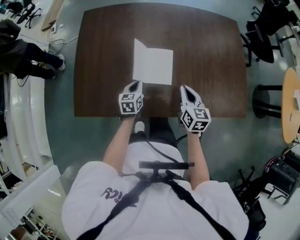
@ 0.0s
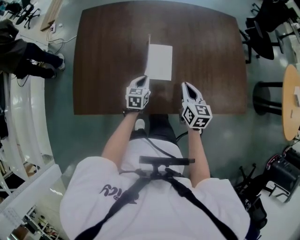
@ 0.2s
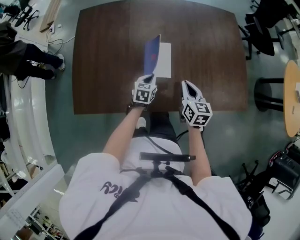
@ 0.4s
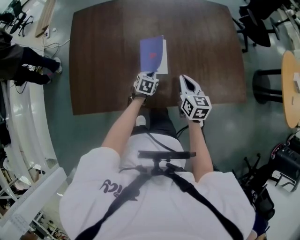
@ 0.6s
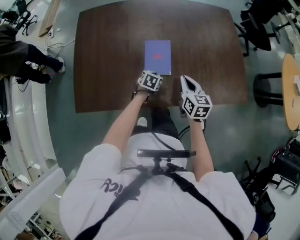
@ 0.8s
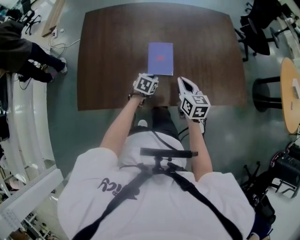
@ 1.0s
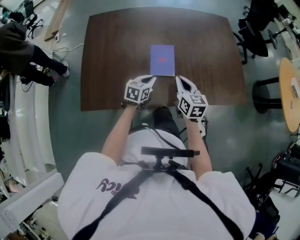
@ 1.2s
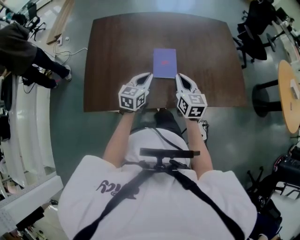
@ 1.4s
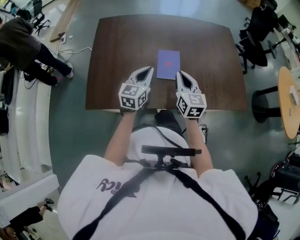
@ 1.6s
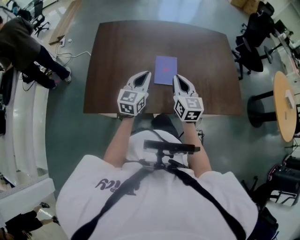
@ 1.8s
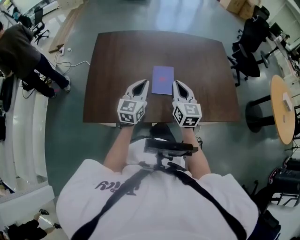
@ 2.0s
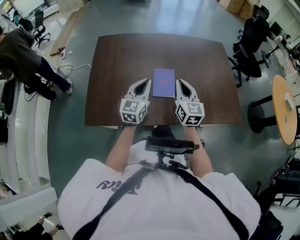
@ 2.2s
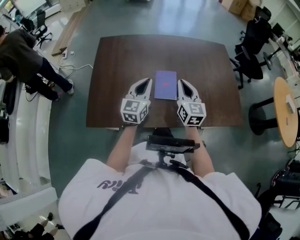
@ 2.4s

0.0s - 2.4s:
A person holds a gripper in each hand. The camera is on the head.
0.0s - 1.2s: The right gripper shifts some 5 cm backward. The left gripper goes approximately 10 cm to the right and upward, and changes its angle by roughly 20 degrees.
1.2s - 2.4s: The left gripper shifts some 20 cm upward, and tilts its fingers roughly 30 degrees upward, while the right gripper travels upward by about 10 cm, and rotates roughly 20 degrees.

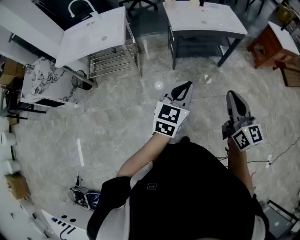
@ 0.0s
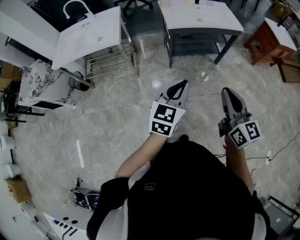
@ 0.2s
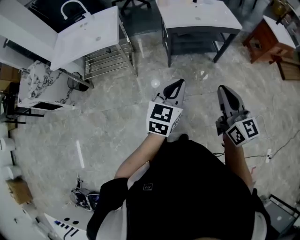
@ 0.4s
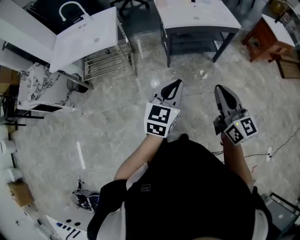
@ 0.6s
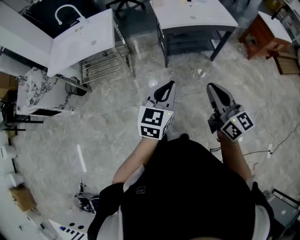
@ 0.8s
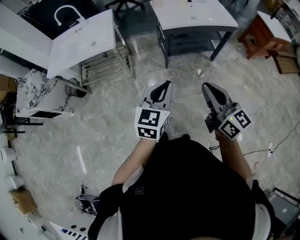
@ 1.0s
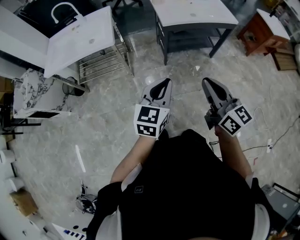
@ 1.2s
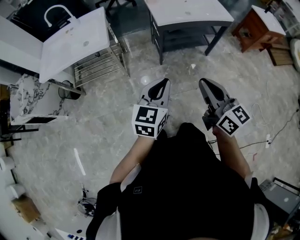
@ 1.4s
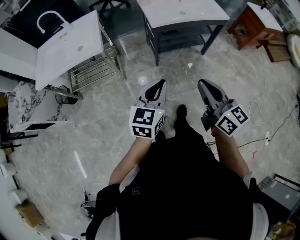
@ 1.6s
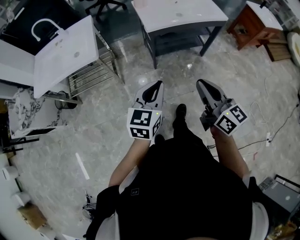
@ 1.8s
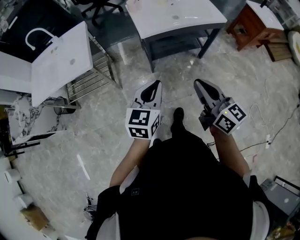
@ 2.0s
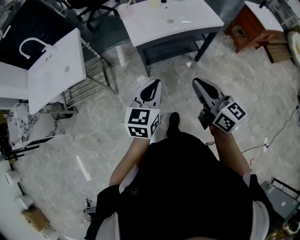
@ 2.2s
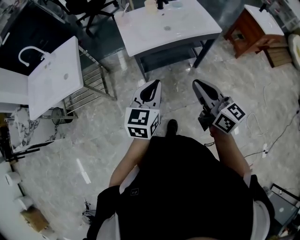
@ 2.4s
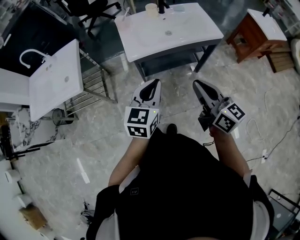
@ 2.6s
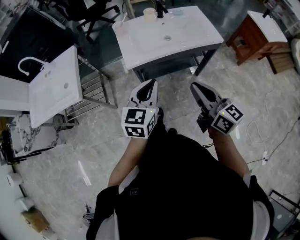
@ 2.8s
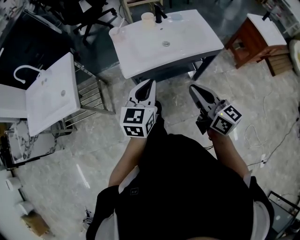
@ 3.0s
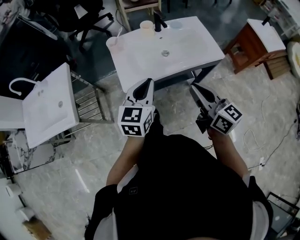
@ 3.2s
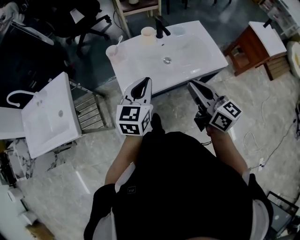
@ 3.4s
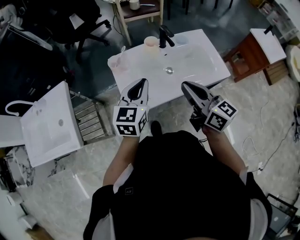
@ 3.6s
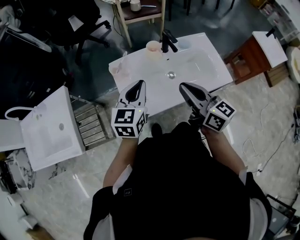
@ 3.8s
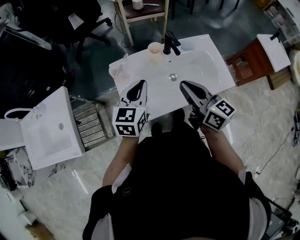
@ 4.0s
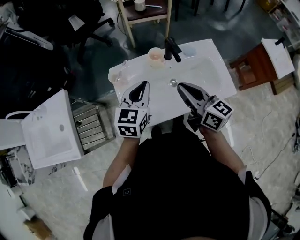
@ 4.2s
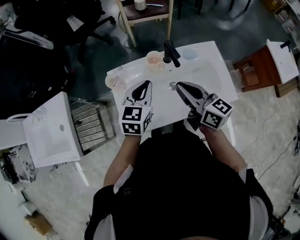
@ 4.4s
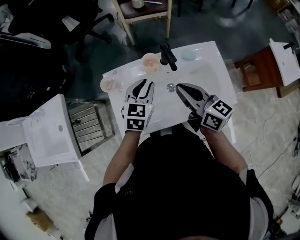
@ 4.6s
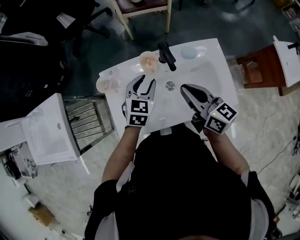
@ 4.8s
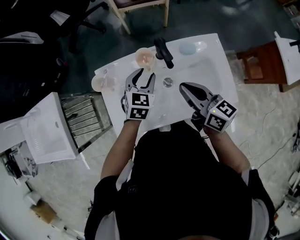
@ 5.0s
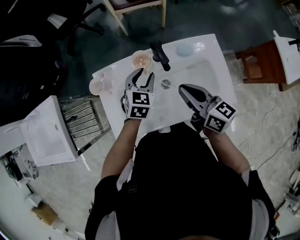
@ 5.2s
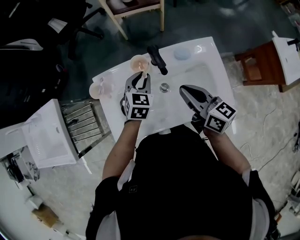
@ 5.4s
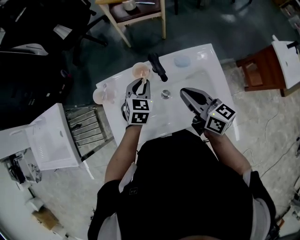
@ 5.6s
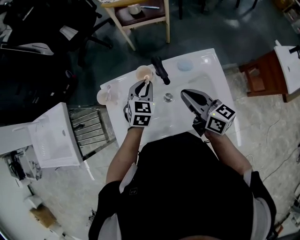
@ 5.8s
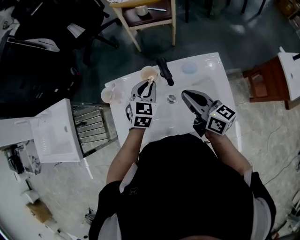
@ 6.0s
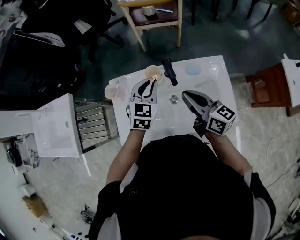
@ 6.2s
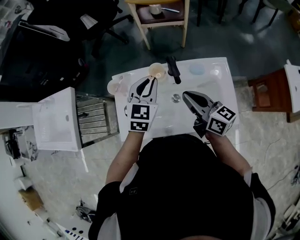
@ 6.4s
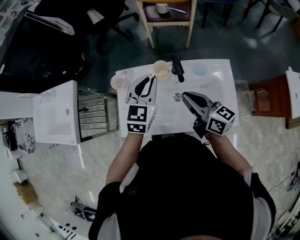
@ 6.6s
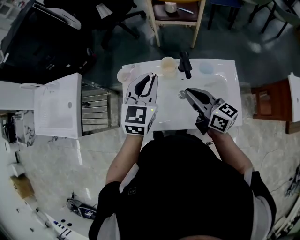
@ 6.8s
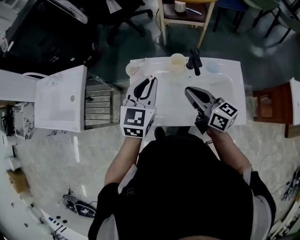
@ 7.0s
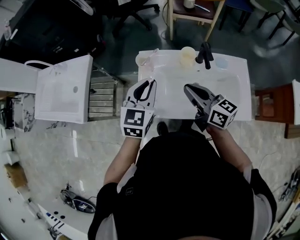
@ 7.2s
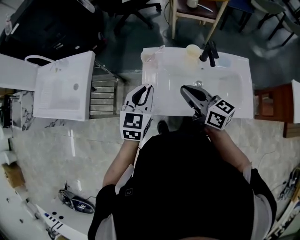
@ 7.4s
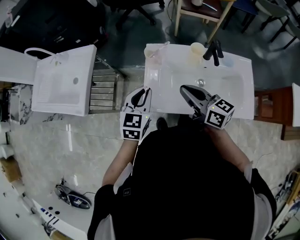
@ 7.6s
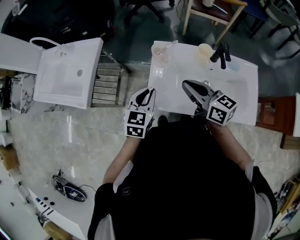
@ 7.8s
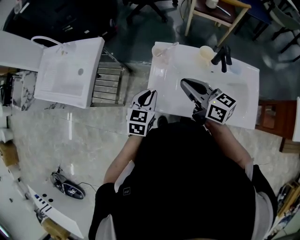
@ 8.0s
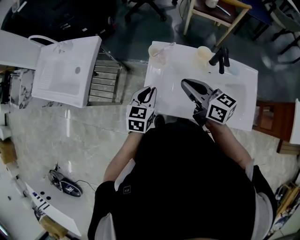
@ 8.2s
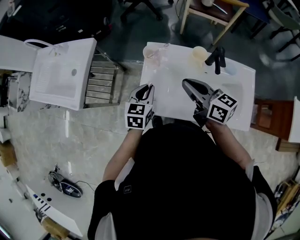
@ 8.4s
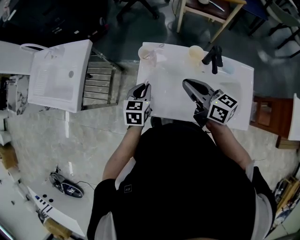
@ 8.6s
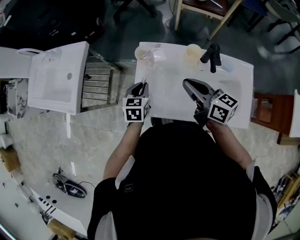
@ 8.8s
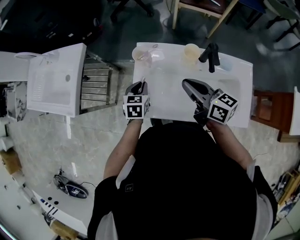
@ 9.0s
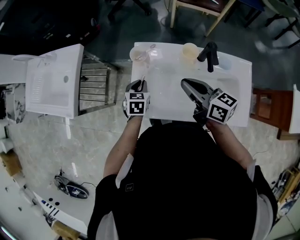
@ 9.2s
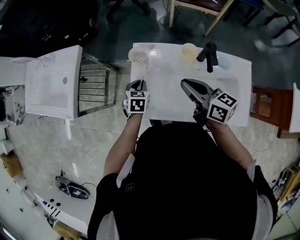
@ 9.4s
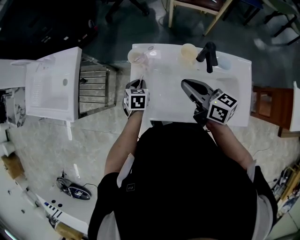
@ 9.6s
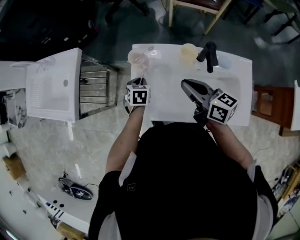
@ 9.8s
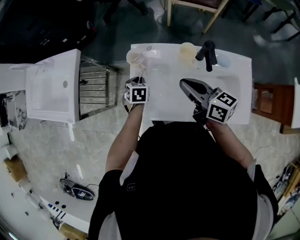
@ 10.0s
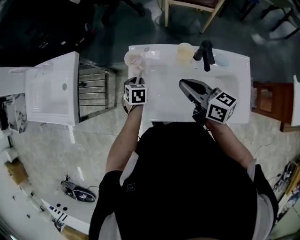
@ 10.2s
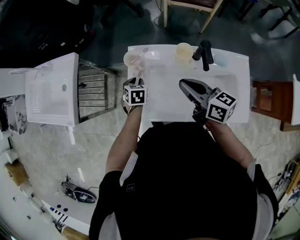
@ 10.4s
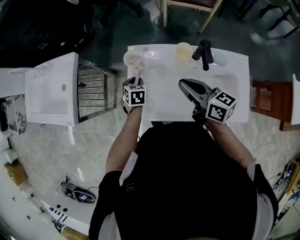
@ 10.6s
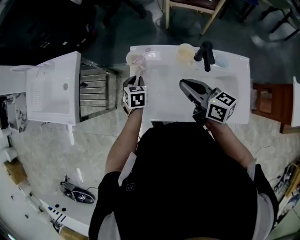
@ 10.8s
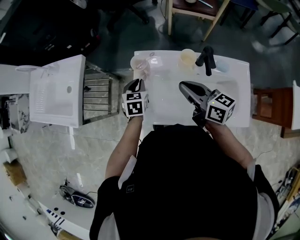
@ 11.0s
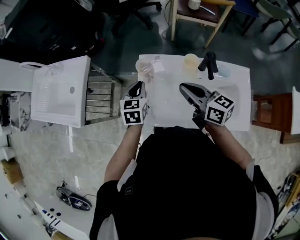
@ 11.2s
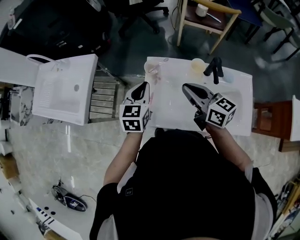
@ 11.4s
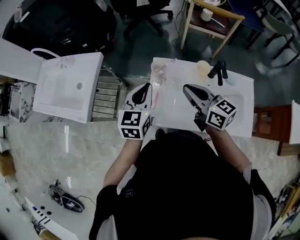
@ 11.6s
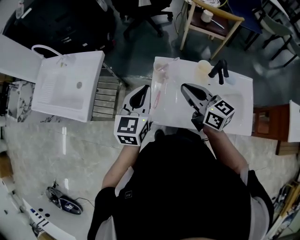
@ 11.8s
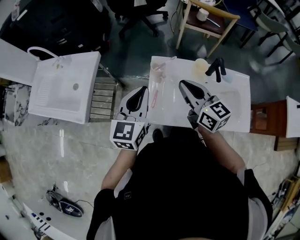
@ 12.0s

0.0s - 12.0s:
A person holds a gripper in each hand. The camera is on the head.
0.0s - 1.6s: Both grippers travel together to the left and forward, approximately 10 cm.
1.6s - 3.0s: The grippers both shift forward and to the right by about 40 cm.
3.0s - 4.4s: Both grippers move forward, approximately 40 cm.
4.4s - 6.0s: The left gripper heads to the right, forward and downward, covering some 15 cm, and opens, then closes once more; the right gripper goes about 10 cm to the right.
6.0s - 7.6s: The right gripper is displaced to the left by roughly 25 cm, while the left gripper heads to the left and backward, covering approximately 30 cm, and changes its angle by approximately 20 degrees.
7.6s - 9.0s: The left gripper shifts roughly 15 cm downward and forward, and swivels about 20 degrees; the right gripper goes about 10 cm to the right and forward.
9.0s - 10.4s: The left gripper heads downward, covering some 5 cm.
10.4s - 12.0s: The right gripper heads to the left and upward, covering approximately 15 cm, and changes its angle by some 20 degrees. Meanwhile the left gripper goes approximately 30 cm upward, and points its fingers about 50 degrees further upward.

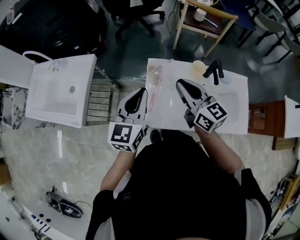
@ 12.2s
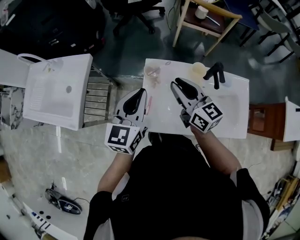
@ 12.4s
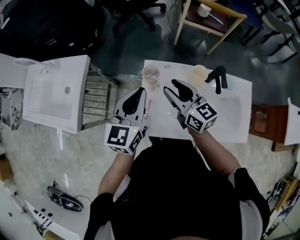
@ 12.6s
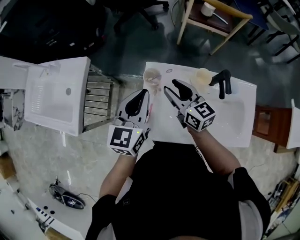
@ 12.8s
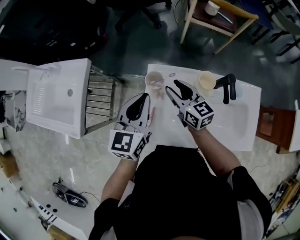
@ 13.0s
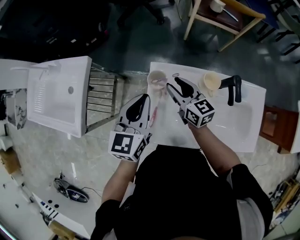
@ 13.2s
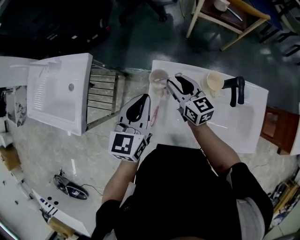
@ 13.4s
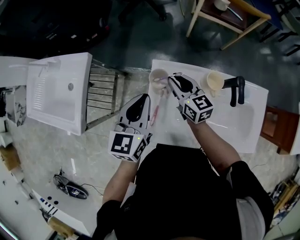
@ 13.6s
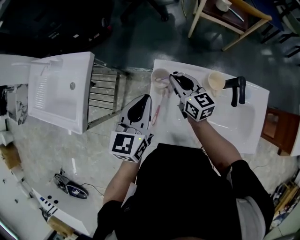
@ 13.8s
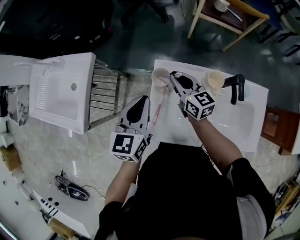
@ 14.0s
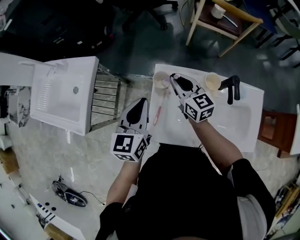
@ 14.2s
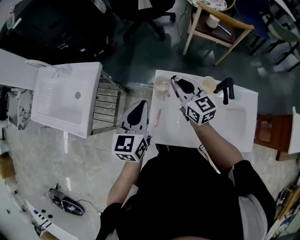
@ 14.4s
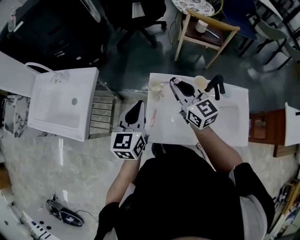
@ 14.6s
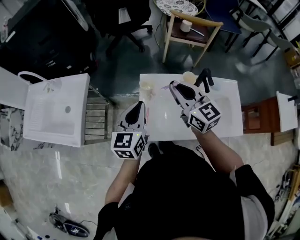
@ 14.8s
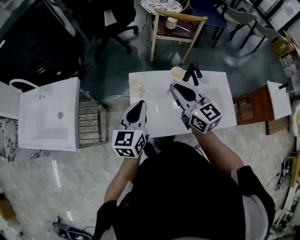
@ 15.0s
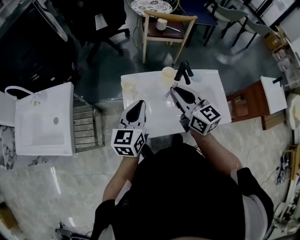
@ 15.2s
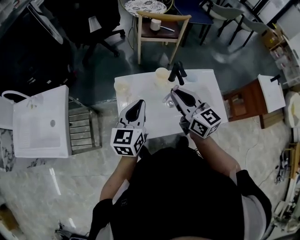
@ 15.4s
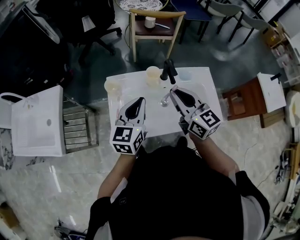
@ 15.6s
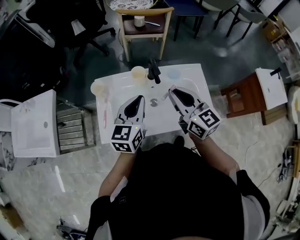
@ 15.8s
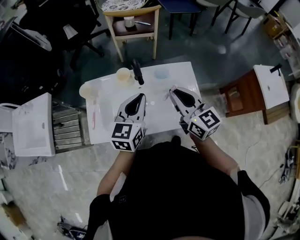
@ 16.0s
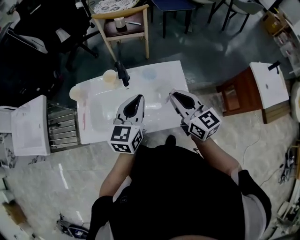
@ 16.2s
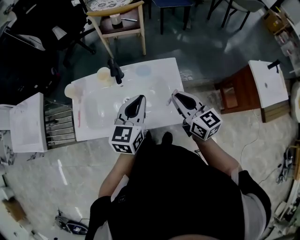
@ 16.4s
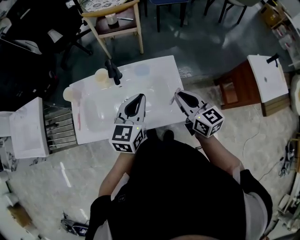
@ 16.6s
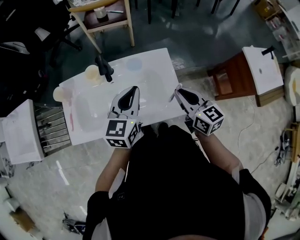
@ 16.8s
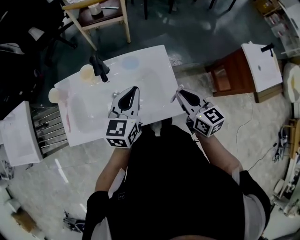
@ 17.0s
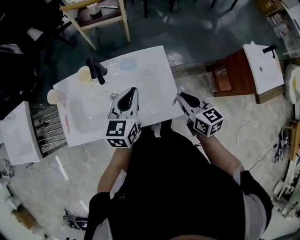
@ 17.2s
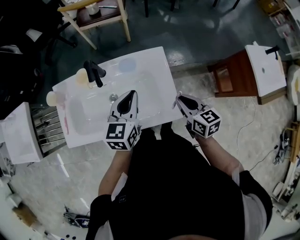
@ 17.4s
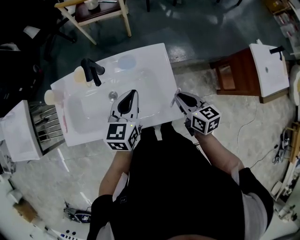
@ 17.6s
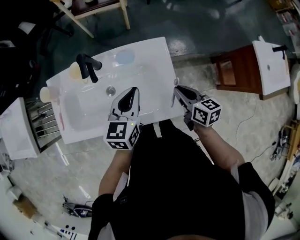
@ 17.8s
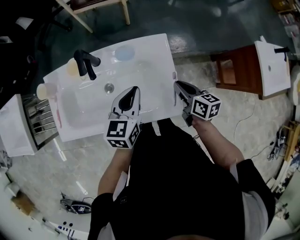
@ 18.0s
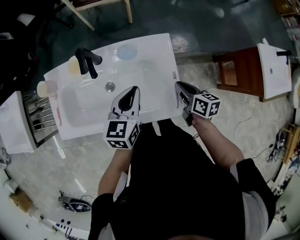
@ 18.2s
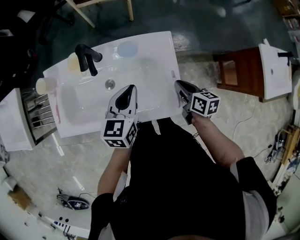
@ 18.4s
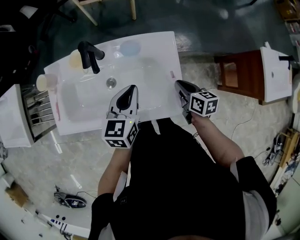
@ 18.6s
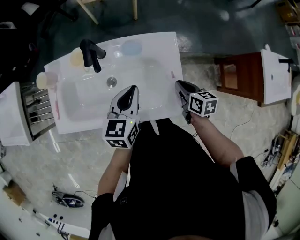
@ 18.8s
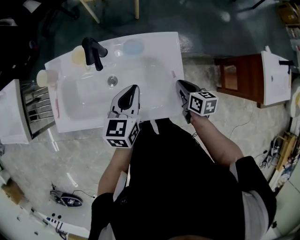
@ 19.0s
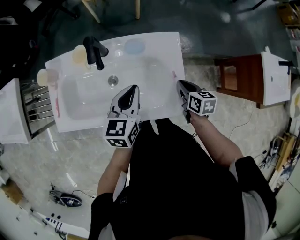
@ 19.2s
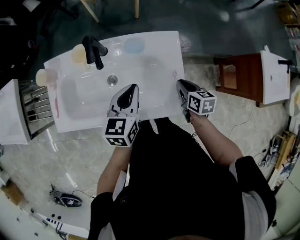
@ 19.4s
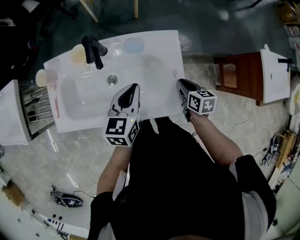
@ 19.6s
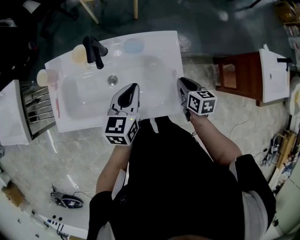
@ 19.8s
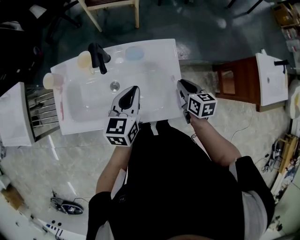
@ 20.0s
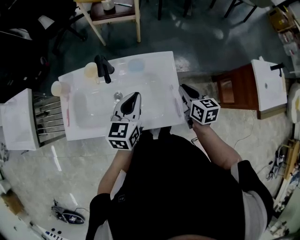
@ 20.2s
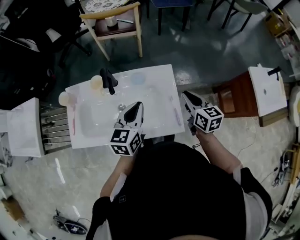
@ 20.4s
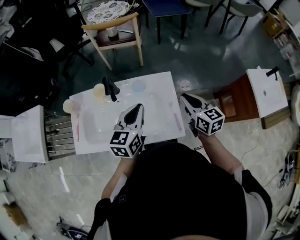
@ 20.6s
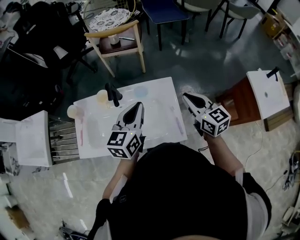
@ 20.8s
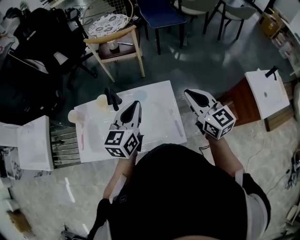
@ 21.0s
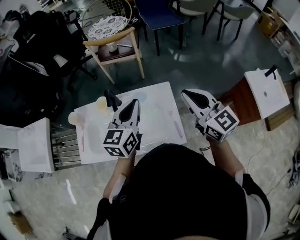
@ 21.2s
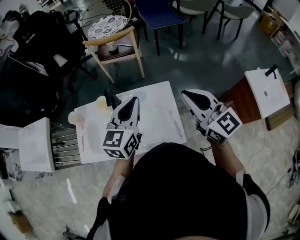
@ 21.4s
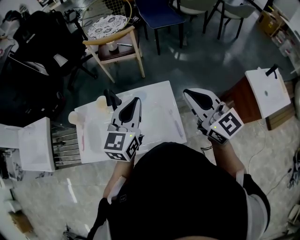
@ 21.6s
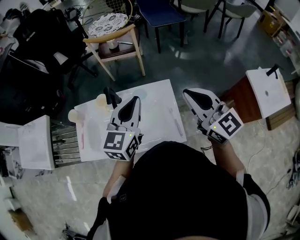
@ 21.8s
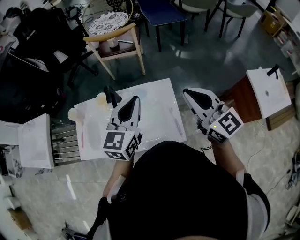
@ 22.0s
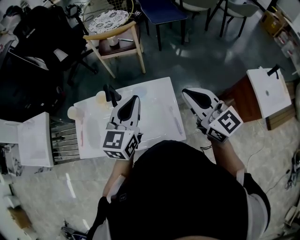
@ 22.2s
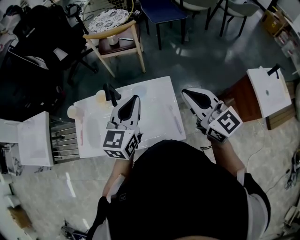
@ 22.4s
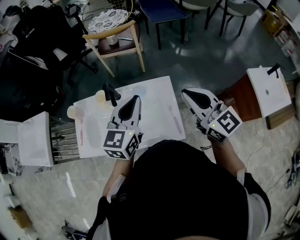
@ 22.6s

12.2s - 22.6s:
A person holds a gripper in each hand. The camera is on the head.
12.2s - 13.6s: The left gripper shifts about 15 cm forward and downward. The right gripper travels downward and forward by about 20 cm.
13.6s - 15.2s: The left gripper heads backward and upward, covering roughly 15 cm; the right gripper moves upward and backward, roughly 25 cm.
15.2s - 16.6s: The two grippers go roughly 40 cm to the right.
16.6s - 18.2s: The right gripper moves downward and to the right, approximately 20 cm, and changes its angle by approximately 40 degrees. The left gripper is displaced downward and forward by roughly 15 cm.
18.2s - 19.6s: There are only small adjustments of the grippers.
19.6s - 21.2s: The right gripper travels upward by roughly 35 cm, and points its fingers about 40 degrees further upward, while the left gripper goes roughly 20 cm upward.
21.2s - 22.6s: There are only small adjustments of the grippers.
